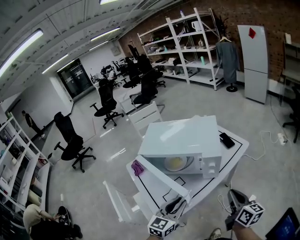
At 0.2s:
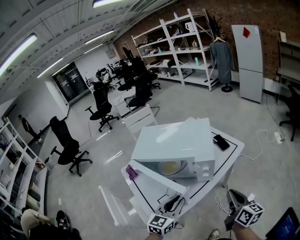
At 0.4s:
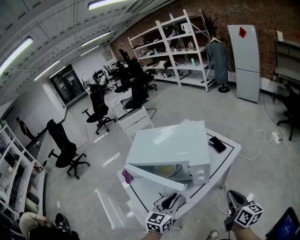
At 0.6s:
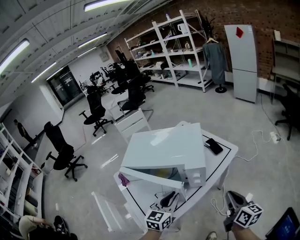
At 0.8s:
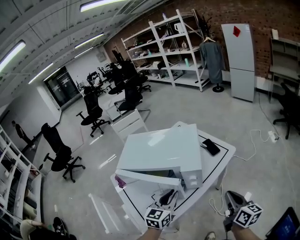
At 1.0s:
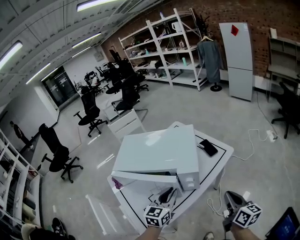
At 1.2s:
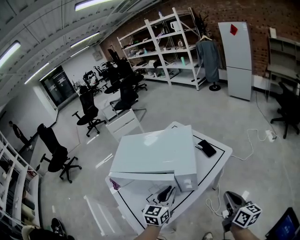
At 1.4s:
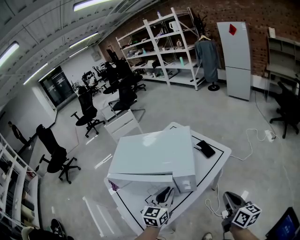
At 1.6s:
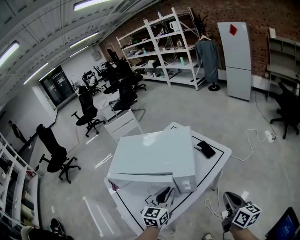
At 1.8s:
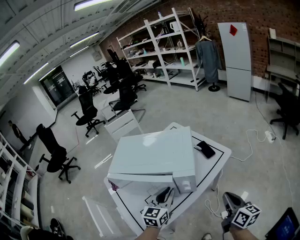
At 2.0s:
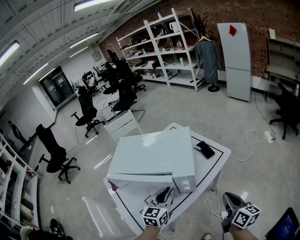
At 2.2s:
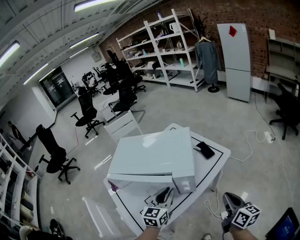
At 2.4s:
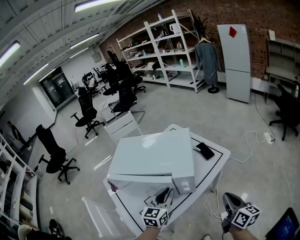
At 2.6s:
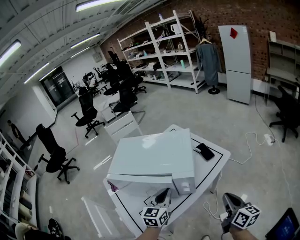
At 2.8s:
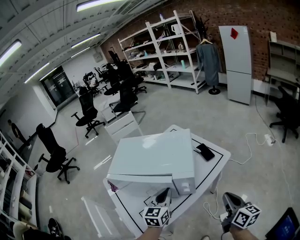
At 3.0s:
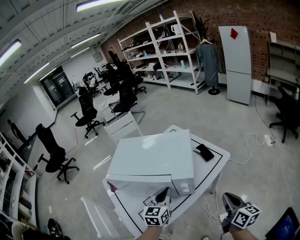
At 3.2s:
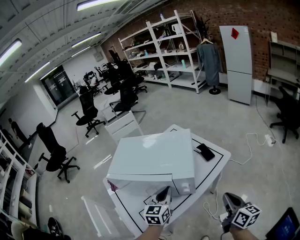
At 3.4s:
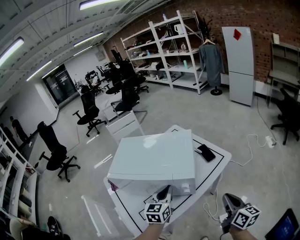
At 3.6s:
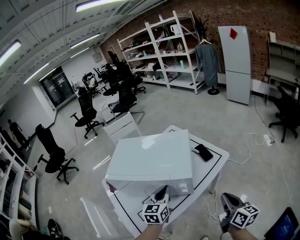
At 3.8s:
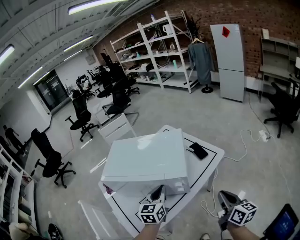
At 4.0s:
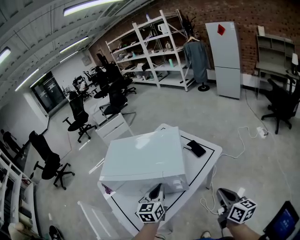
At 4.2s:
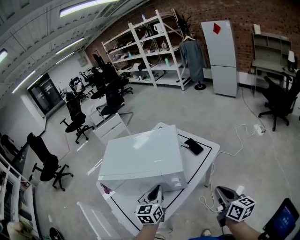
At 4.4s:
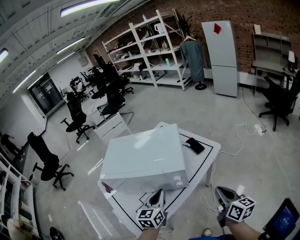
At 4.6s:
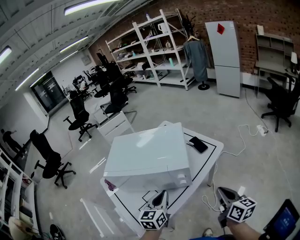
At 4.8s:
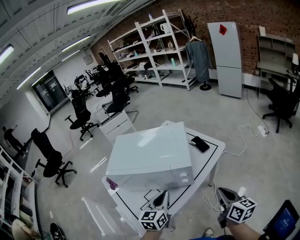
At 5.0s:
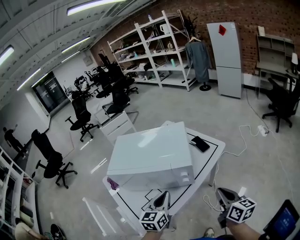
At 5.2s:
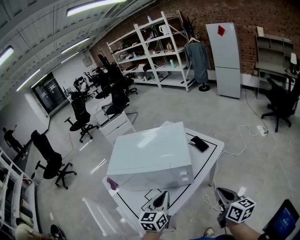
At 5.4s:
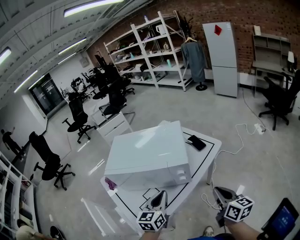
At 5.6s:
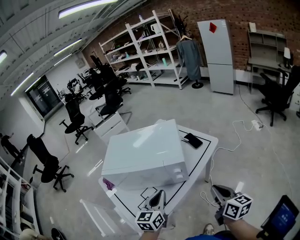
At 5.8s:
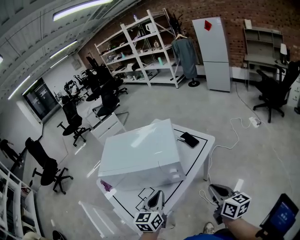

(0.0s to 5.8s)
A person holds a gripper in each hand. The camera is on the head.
0.0s - 1.4s: The right gripper shifts about 10 cm to the right and forward; the left gripper travels forward by approximately 15 cm.
1.4s - 4.4s: The grippers move only a little.
4.4s - 5.8s: The left gripper is displaced backward by about 5 cm.

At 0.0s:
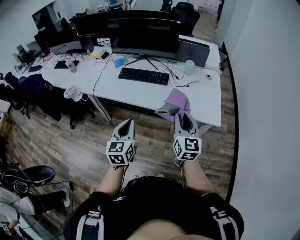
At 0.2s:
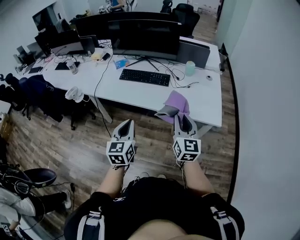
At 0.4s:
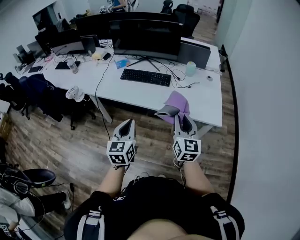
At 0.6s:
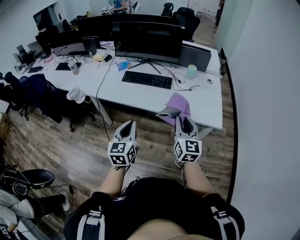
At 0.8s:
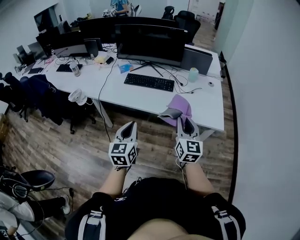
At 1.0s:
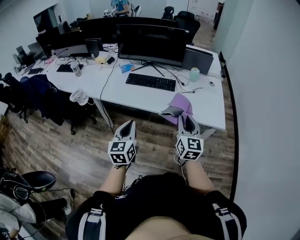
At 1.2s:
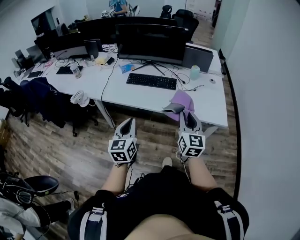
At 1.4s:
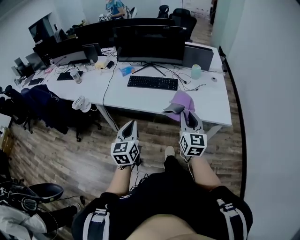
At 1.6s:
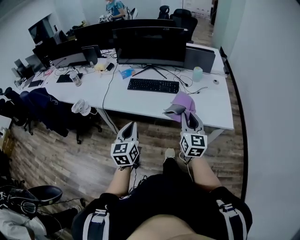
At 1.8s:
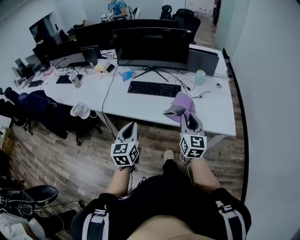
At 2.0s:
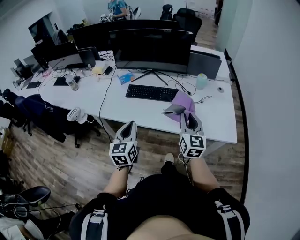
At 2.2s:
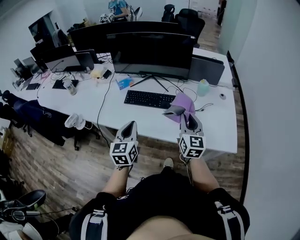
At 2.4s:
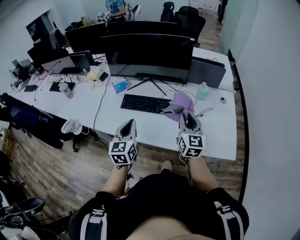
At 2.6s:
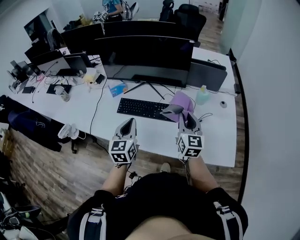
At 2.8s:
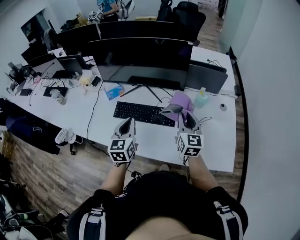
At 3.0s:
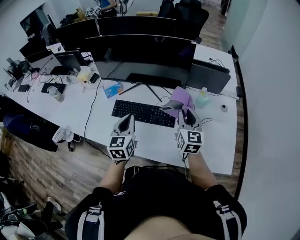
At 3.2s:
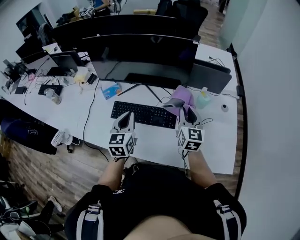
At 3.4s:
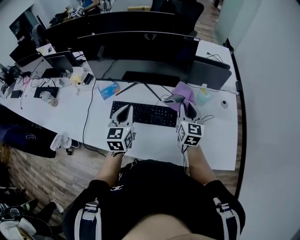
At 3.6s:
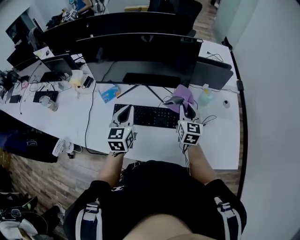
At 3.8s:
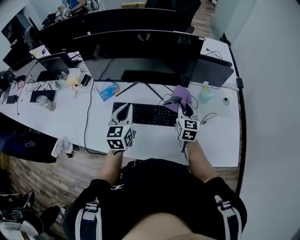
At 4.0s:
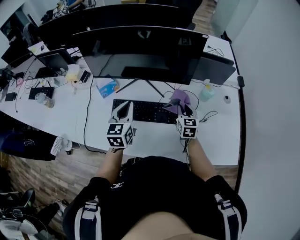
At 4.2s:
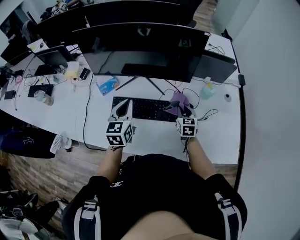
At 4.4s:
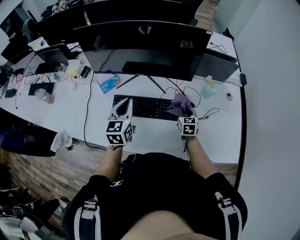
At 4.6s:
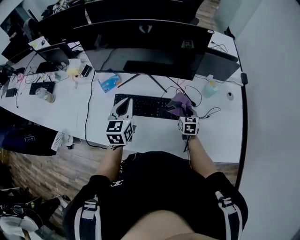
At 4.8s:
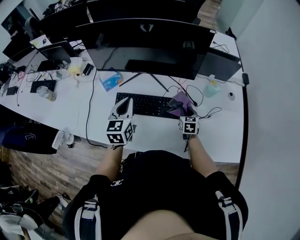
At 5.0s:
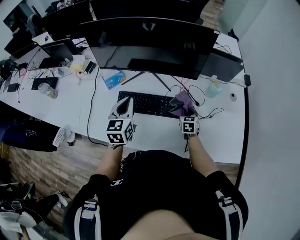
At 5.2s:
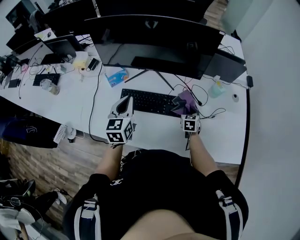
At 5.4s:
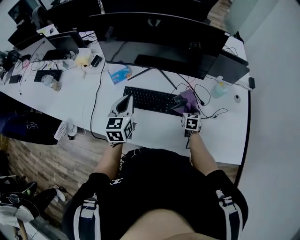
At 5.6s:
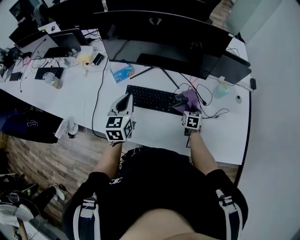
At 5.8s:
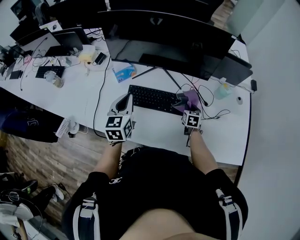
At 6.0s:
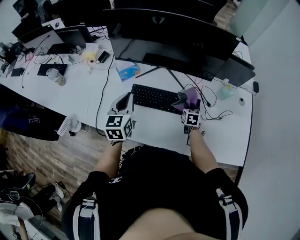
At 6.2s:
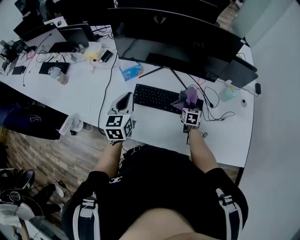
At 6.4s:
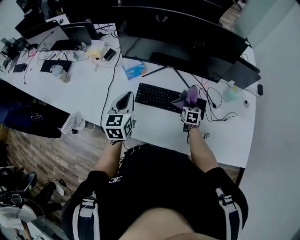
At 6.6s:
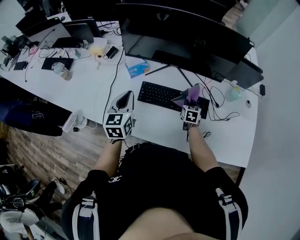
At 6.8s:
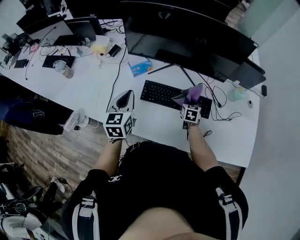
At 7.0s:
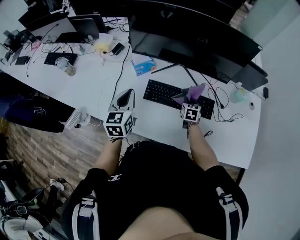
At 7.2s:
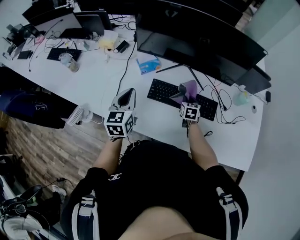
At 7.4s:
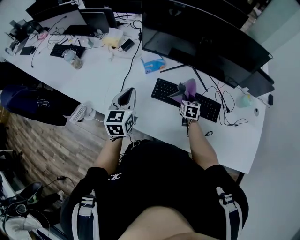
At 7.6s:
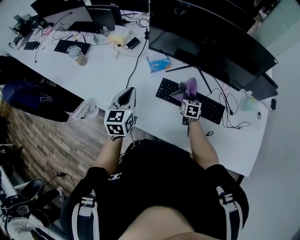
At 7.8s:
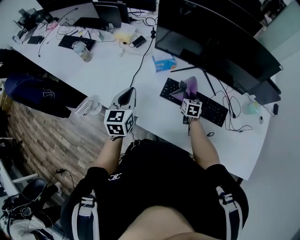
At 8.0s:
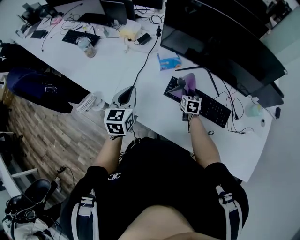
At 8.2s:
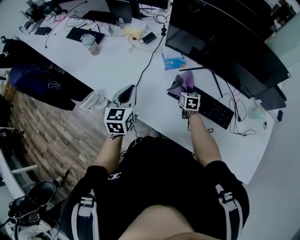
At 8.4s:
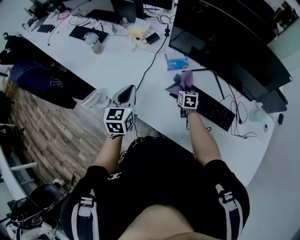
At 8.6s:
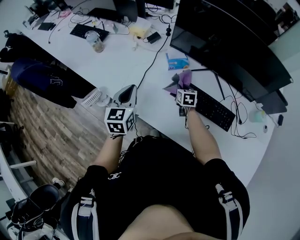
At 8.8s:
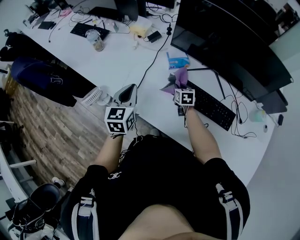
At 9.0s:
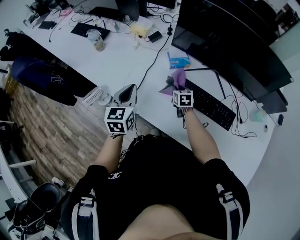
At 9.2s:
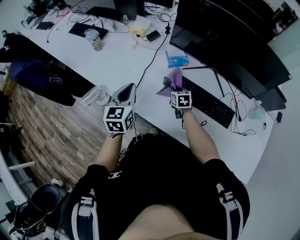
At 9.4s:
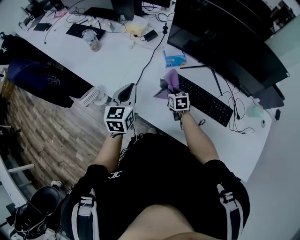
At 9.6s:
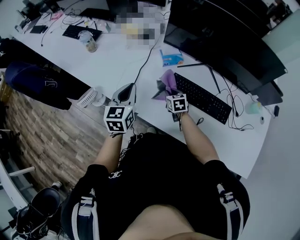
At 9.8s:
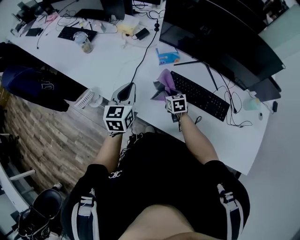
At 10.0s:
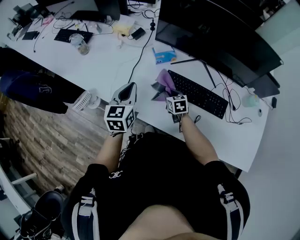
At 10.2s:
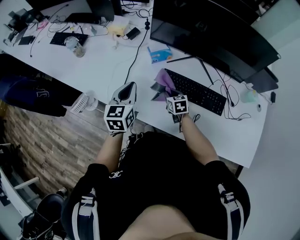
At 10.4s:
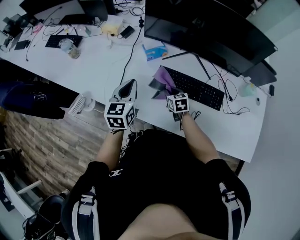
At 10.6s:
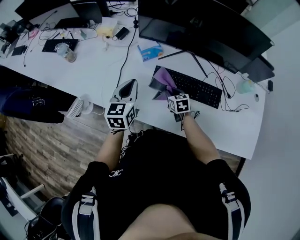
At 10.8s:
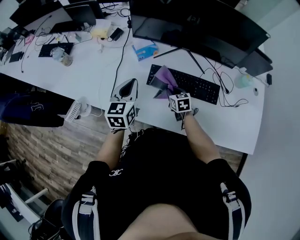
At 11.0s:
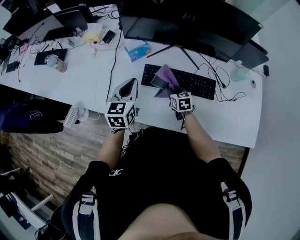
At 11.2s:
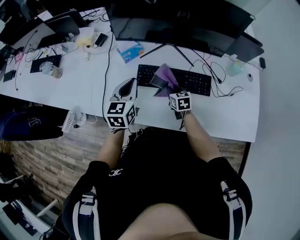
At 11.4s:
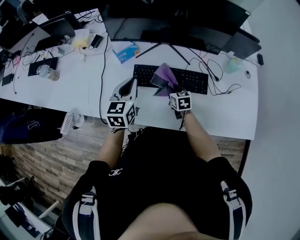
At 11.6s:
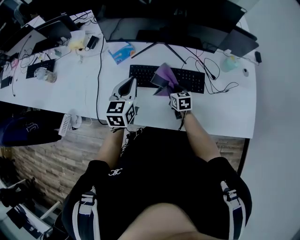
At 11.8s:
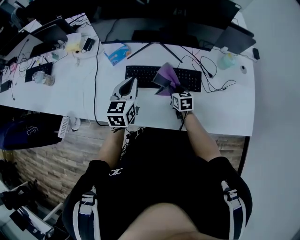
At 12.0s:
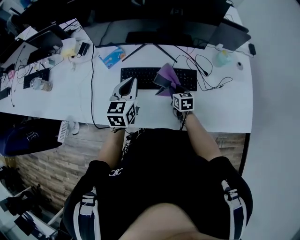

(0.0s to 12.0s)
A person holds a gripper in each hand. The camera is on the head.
0.0s - 1.6s: The grippers both shift to the left by approximately 10 cm.
1.6s - 3.0s: The pair of grippers is taken forward, some 50 cm.
3.0s - 4.4s: The left gripper goes some 15 cm forward and to the left. Meanwhile the right gripper is displaced downward by about 20 cm, and rotates about 30 degrees.
4.4s - 6.0s: The right gripper travels to the left and downward by some 10 cm; the left gripper goes about 10 cm to the left.
6.0s - 7.6s: The two grippers go roughly 20 cm to the left.
7.6s - 9.0s: The right gripper heads to the left, covering roughly 20 cm, and changes its angle by about 20 degrees, while the left gripper moves to the left, approximately 10 cm.
9.0s - 10.4s: The right gripper moves backward and to the right, approximately 10 cm, while the left gripper moves to the right, roughly 10 cm.
10.4s - 12.0s: The two grippers go about 20 cm to the right. The right gripper turns by roughly 20 degrees.

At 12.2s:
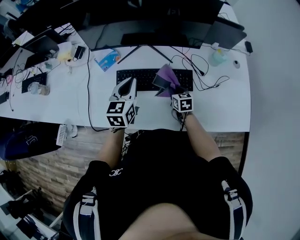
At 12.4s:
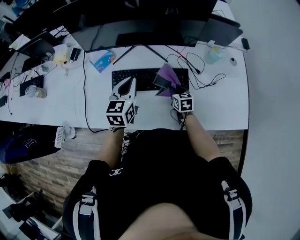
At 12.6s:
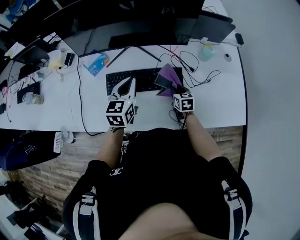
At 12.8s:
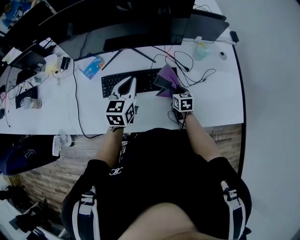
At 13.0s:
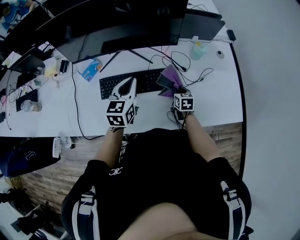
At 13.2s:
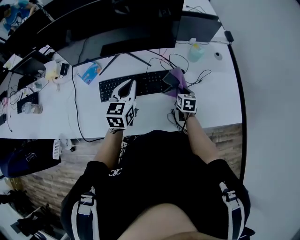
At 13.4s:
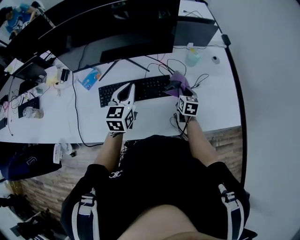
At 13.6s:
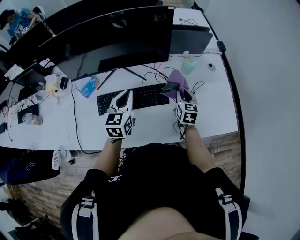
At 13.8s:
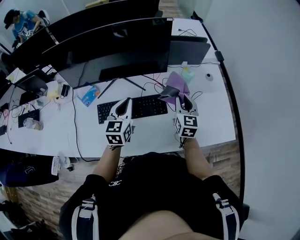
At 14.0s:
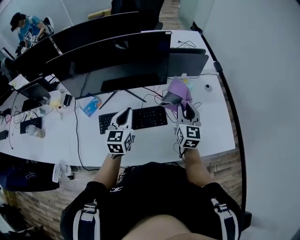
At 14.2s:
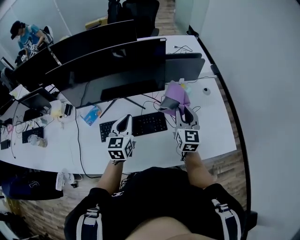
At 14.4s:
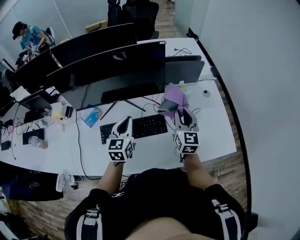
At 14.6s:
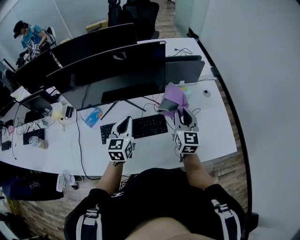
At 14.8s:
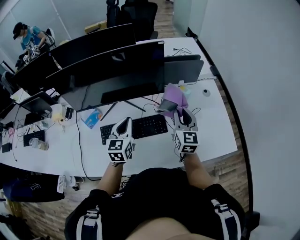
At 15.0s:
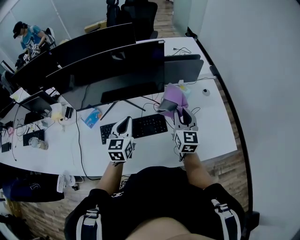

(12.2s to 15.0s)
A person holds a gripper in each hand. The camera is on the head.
12.2s - 13.6s: The left gripper travels to the right by some 15 cm. The right gripper goes approximately 25 cm to the right and upward, and swivels about 30 degrees.
13.6s - 15.0s: The right gripper travels upward by approximately 15 cm, and swivels approximately 20 degrees.

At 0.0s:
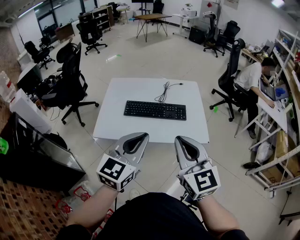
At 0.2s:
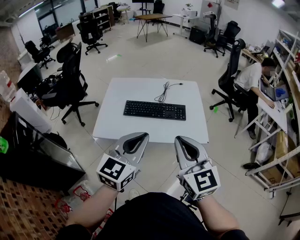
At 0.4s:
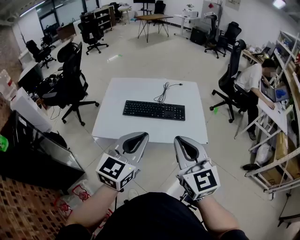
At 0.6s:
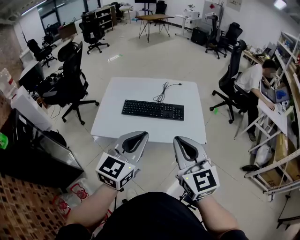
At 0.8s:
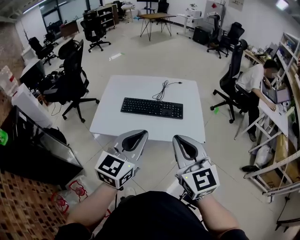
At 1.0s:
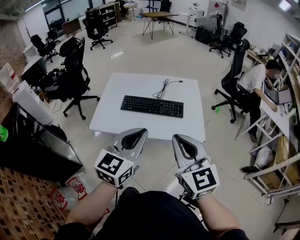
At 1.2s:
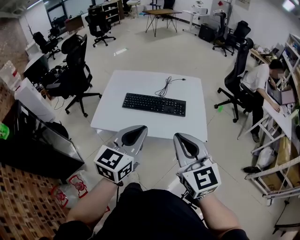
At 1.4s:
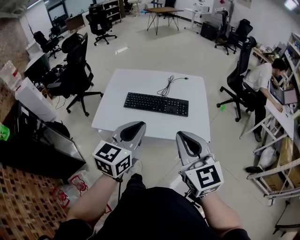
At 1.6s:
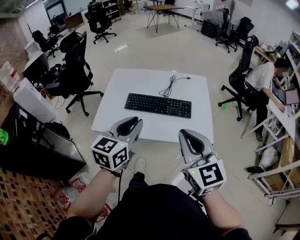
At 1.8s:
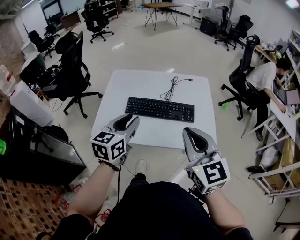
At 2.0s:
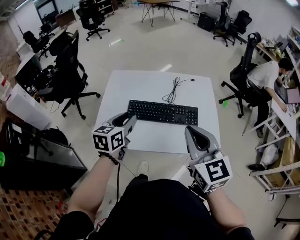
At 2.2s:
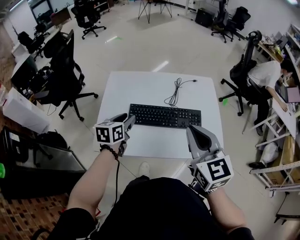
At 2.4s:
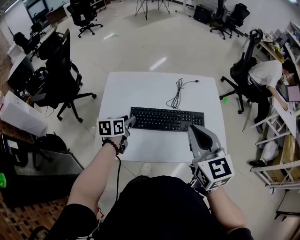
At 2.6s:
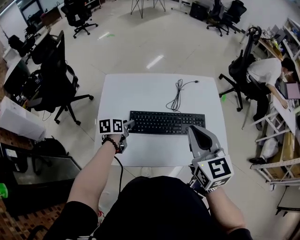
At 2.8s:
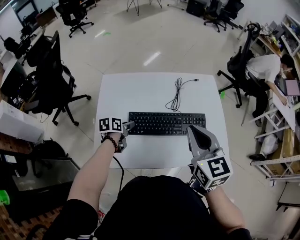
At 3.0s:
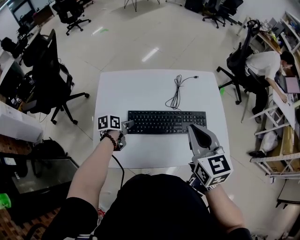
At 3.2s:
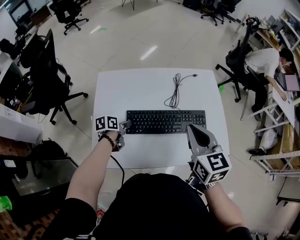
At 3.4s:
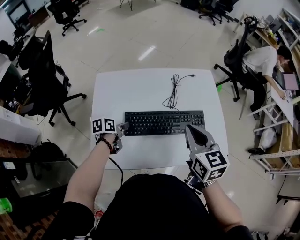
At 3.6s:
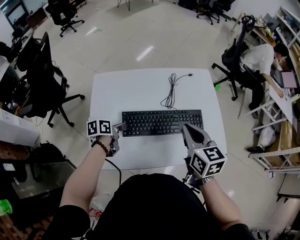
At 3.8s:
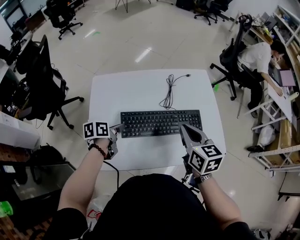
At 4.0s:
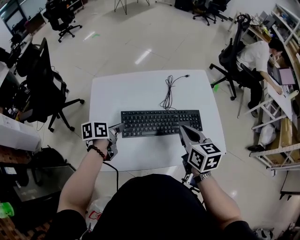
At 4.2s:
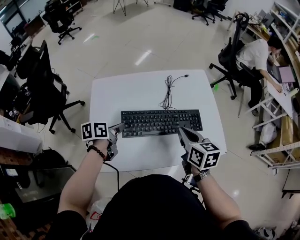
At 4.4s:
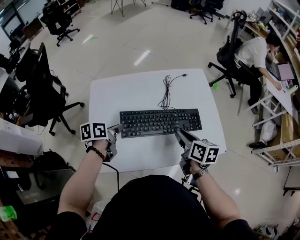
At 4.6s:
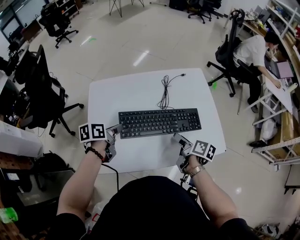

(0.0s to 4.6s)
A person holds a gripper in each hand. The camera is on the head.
0.0s - 1.6s: The right gripper is displaced forward by approximately 5 cm. Meanwhile the left gripper heads forward, covering approximately 10 cm.
1.6s - 3.0s: The left gripper goes about 40 cm downward, forward and to the left, tips its fingers downward by roughly 30 degrees, and opens up. The right gripper heads forward, covering approximately 20 cm, and turns by some 20 degrees.
3.0s - 4.6s: The left gripper shifts about 10 cm upward, and closes up; the right gripper moves downward, approximately 20 cm, twists approximately 60 degrees clockwise, seen from behind, and opens up.
